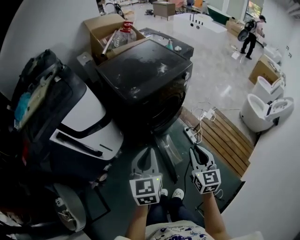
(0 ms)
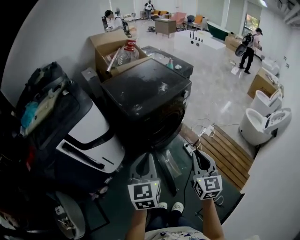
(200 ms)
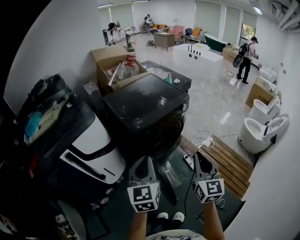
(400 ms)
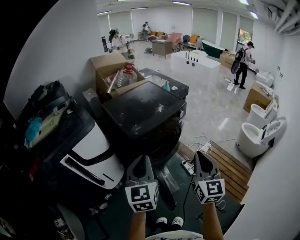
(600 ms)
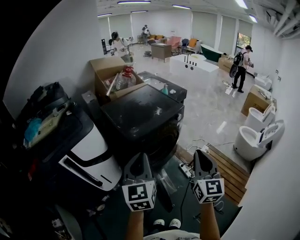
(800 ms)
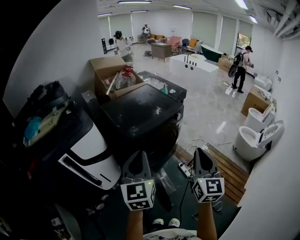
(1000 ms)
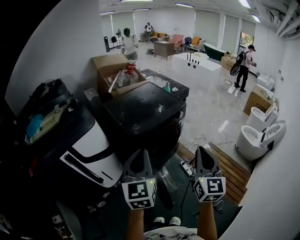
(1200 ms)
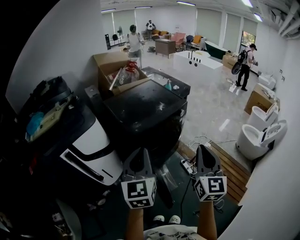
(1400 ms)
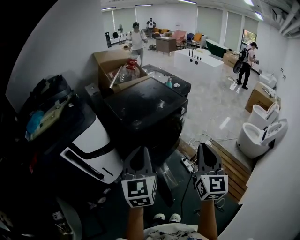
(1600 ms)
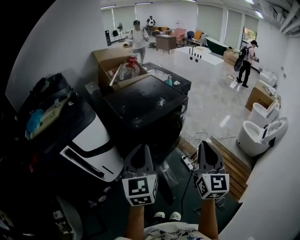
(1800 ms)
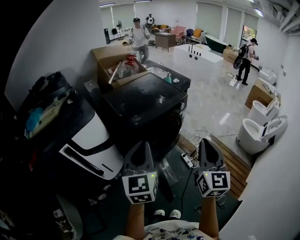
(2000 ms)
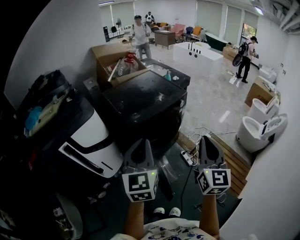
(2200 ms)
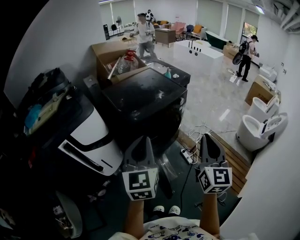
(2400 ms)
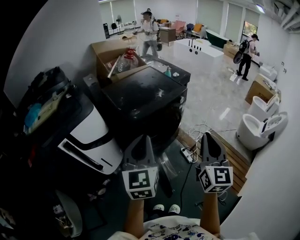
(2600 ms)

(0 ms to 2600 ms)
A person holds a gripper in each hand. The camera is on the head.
0 ms - 1200 ms: The two grippers go about 20 cm upward. The right gripper rotates approximately 20 degrees.
1200 ms - 2600 ms: The grippers make only small movements.

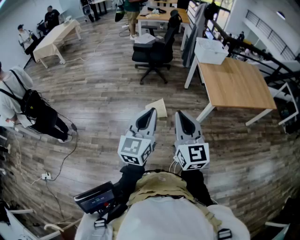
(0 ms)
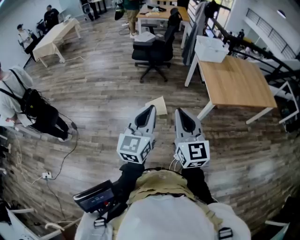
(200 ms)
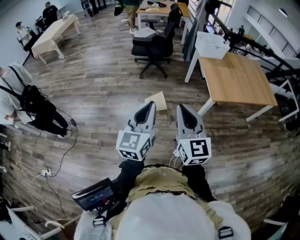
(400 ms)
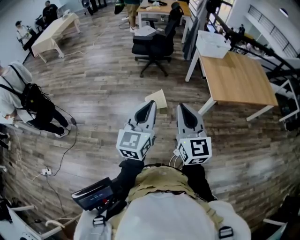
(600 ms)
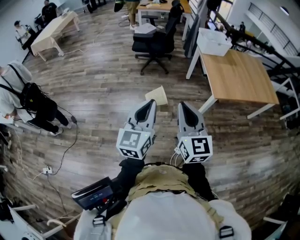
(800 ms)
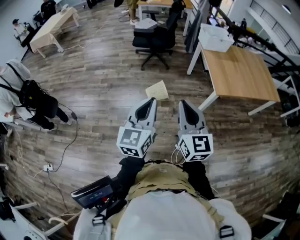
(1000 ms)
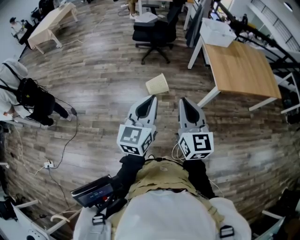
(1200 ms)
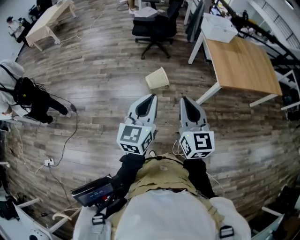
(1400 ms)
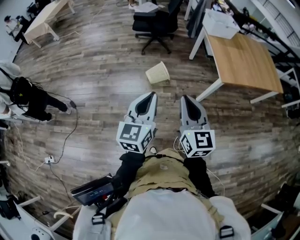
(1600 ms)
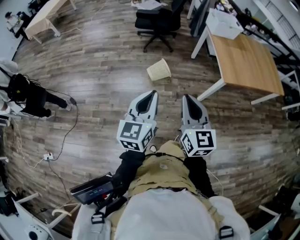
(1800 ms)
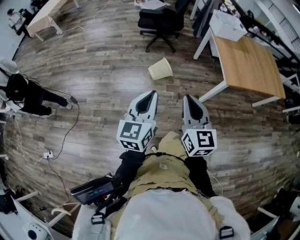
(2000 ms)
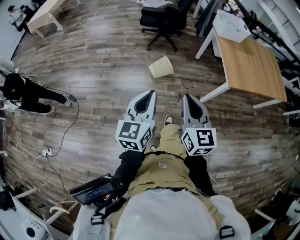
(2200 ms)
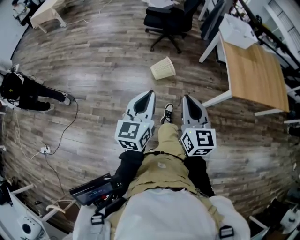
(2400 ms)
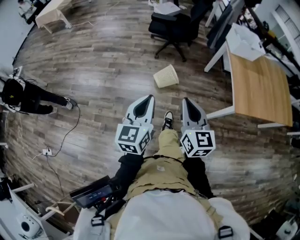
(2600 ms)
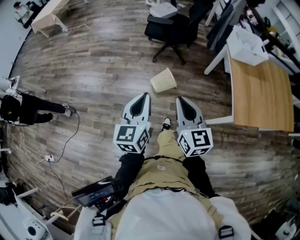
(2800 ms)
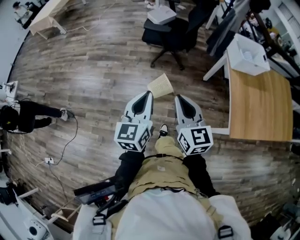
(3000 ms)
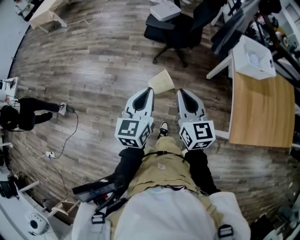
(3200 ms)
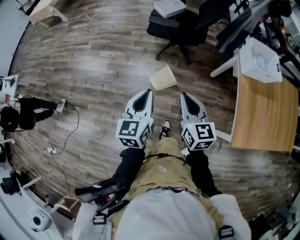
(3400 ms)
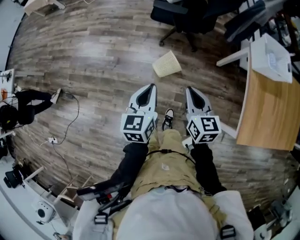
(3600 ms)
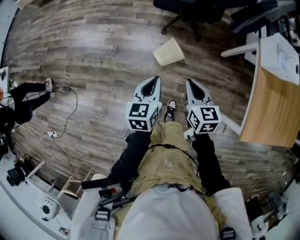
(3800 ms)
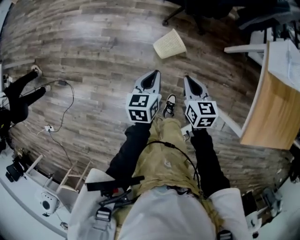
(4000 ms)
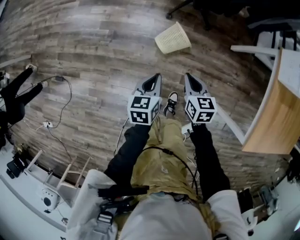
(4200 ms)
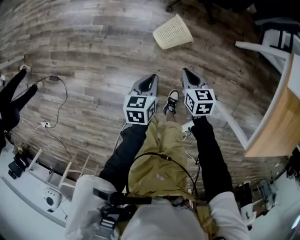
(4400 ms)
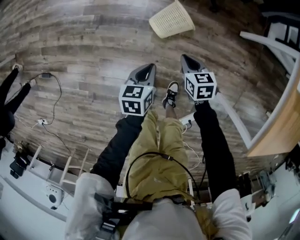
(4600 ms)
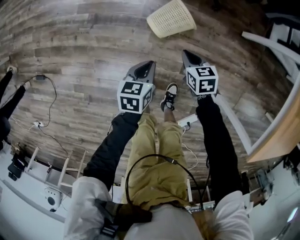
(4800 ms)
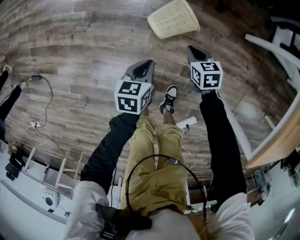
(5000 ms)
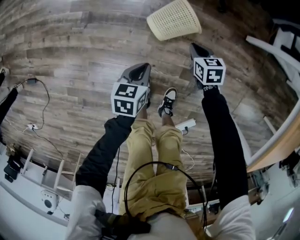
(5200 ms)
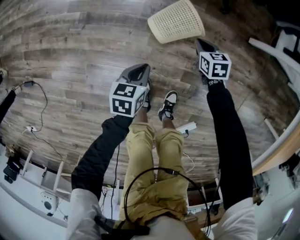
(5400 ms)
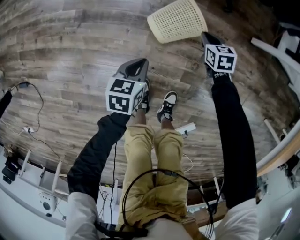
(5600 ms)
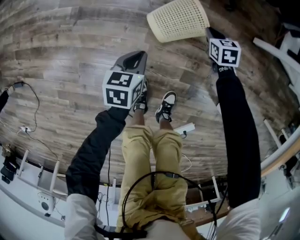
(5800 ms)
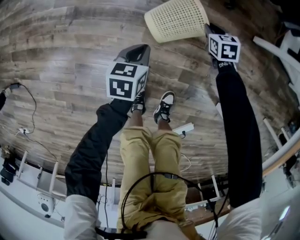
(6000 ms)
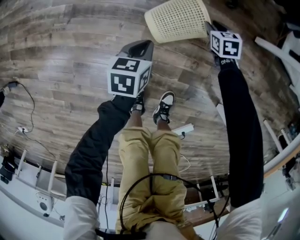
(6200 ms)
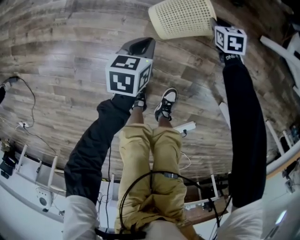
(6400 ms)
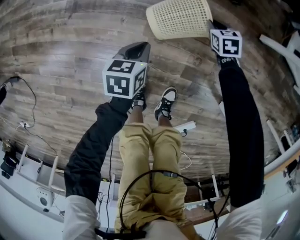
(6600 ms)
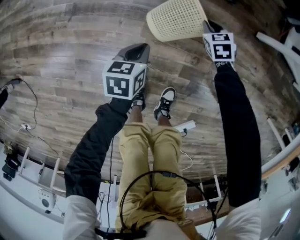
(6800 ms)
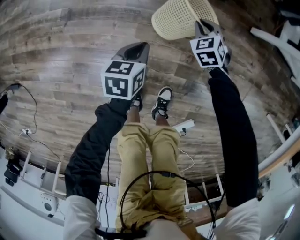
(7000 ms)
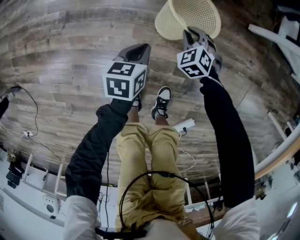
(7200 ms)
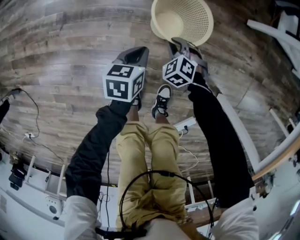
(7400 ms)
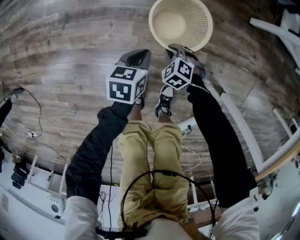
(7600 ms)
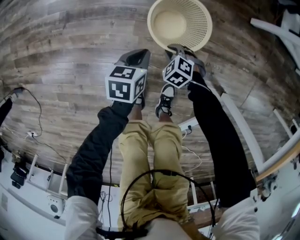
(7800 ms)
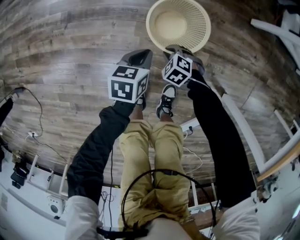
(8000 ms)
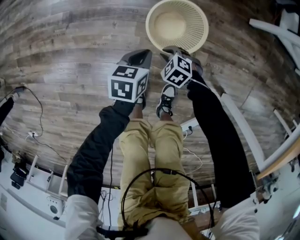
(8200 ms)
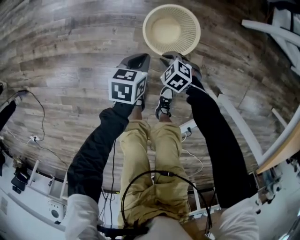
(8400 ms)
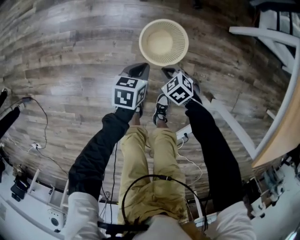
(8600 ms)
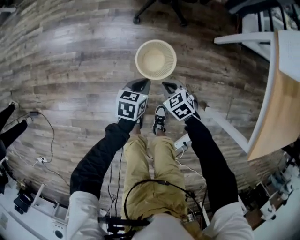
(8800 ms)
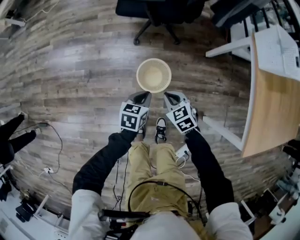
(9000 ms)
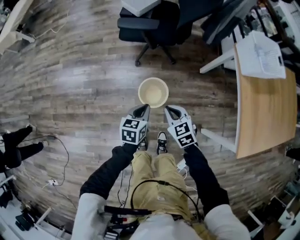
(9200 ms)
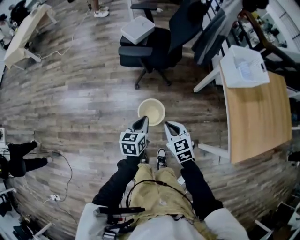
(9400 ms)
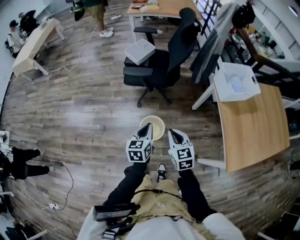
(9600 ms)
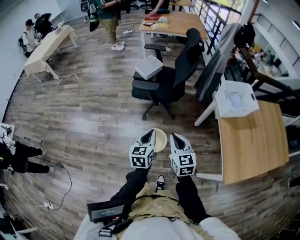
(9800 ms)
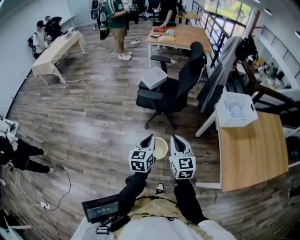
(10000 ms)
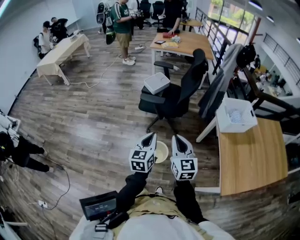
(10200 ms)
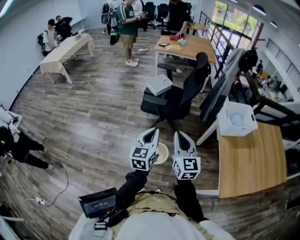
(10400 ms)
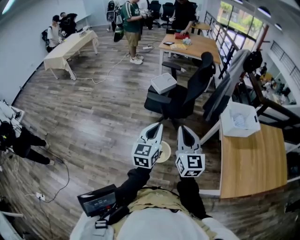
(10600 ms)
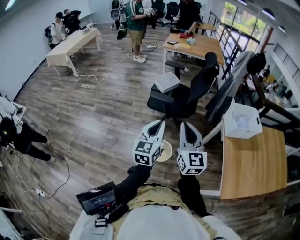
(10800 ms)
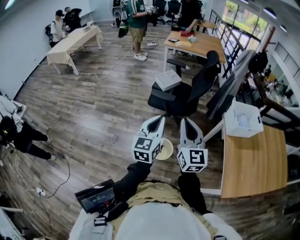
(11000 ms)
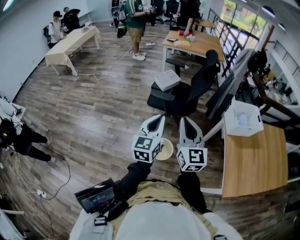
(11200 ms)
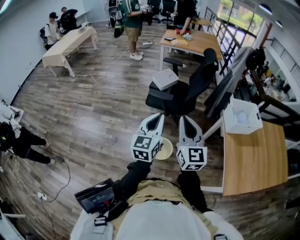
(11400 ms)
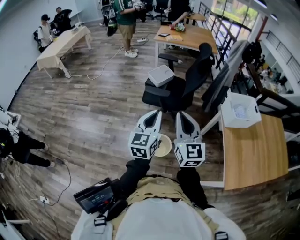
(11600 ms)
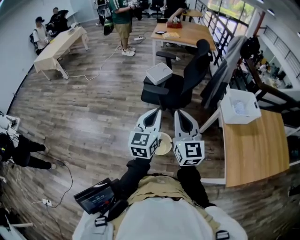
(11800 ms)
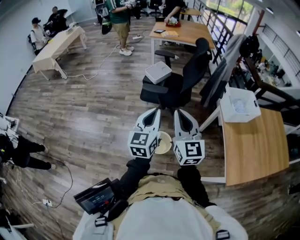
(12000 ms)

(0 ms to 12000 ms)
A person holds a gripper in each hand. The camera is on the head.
0 ms - 1600 ms: Both grippers move downward, approximately 5 cm.
1600 ms - 3000 ms: The two grippers go about 40 cm forward.
3000 ms - 4400 ms: The grippers both shift downward and forward by some 50 cm. The right gripper tips its fingers downward by about 40 degrees; the left gripper tips its fingers downward by roughly 40 degrees.
4400 ms - 6000 ms: The right gripper goes about 40 cm downward and forward, and swivels some 20 degrees. Meanwhile the left gripper goes about 35 cm downward.
6000 ms - 7600 ms: The right gripper moves backward, approximately 20 cm, and swivels approximately 40 degrees; the left gripper heads to the right, covering approximately 10 cm.
7600 ms - 9000 ms: The grippers both shift upward by some 35 cm. The right gripper rotates some 40 degrees.
9000 ms - 10400 ms: The two grippers go some 50 cm upward. The right gripper angles its fingers upward, by roughly 50 degrees. Meanwhile the left gripper points its fingers roughly 40 degrees further upward.
10400 ms - 12000 ms: The right gripper travels upward by about 5 cm; the left gripper ends up approximately 5 cm from where it was.

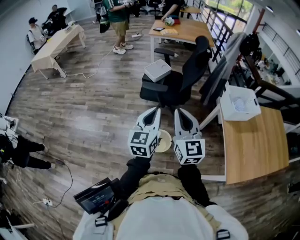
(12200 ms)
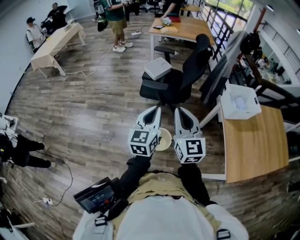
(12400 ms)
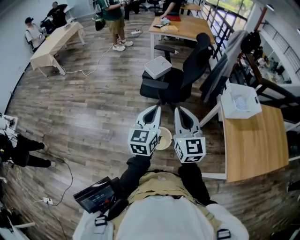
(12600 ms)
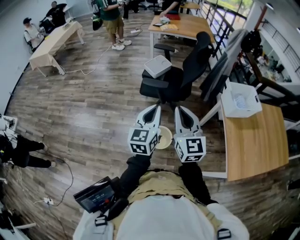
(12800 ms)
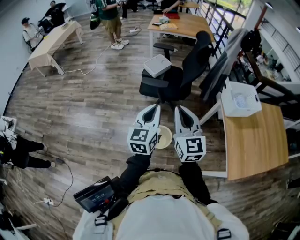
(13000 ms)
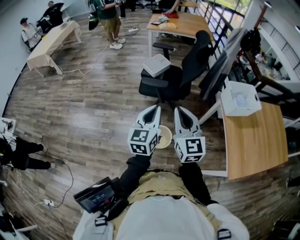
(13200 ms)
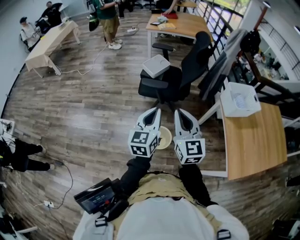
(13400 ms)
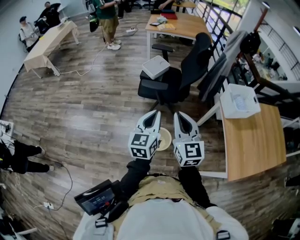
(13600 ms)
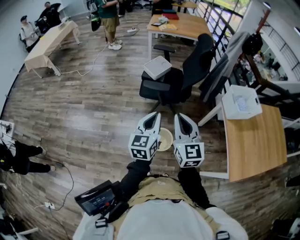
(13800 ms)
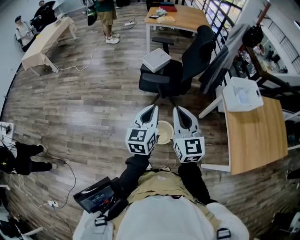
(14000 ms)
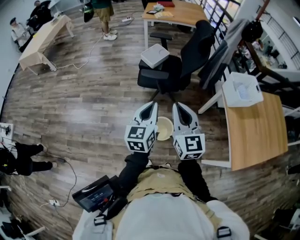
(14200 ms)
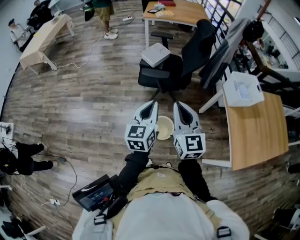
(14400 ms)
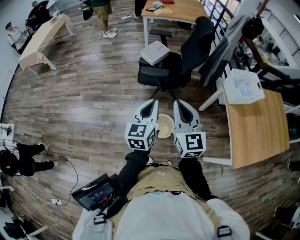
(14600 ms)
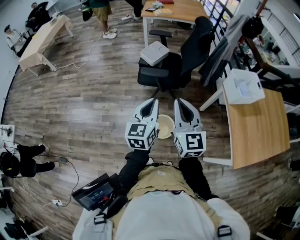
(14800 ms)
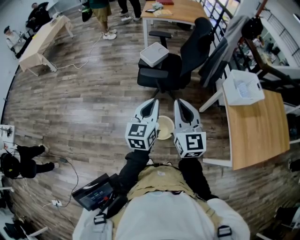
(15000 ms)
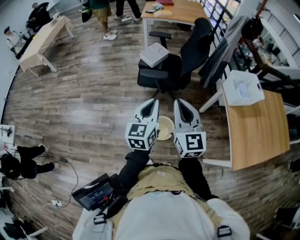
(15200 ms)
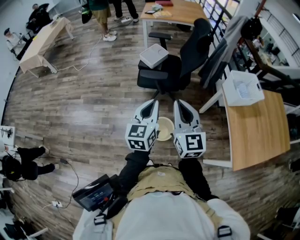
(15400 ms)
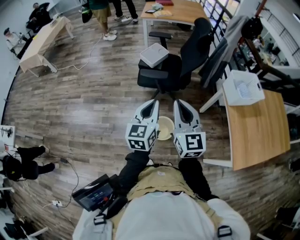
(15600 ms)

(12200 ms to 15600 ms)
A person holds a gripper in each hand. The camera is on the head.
12200 ms - 13800 ms: The right gripper shifts by approximately 5 cm, while the left gripper moves about 5 cm.
13800 ms - 15600 ms: There are only small adjustments of the grippers.

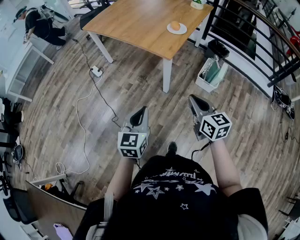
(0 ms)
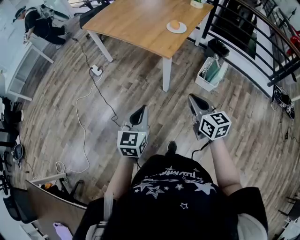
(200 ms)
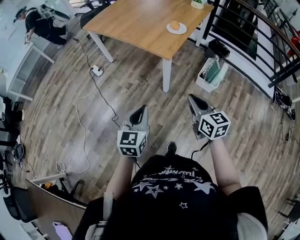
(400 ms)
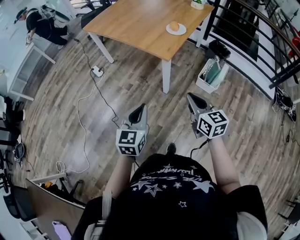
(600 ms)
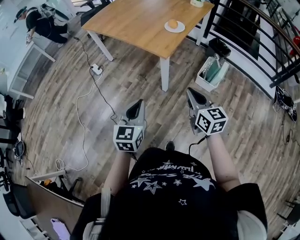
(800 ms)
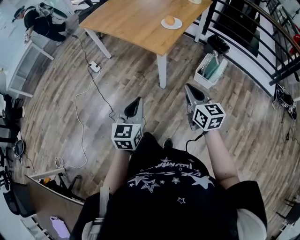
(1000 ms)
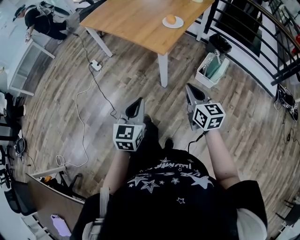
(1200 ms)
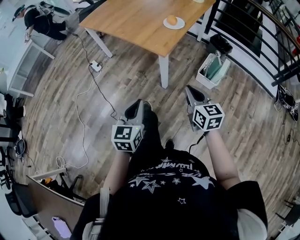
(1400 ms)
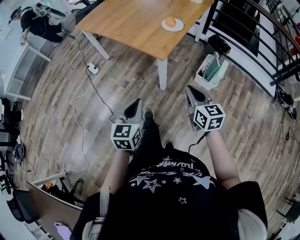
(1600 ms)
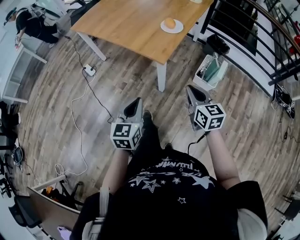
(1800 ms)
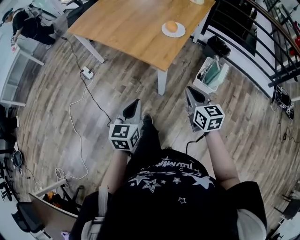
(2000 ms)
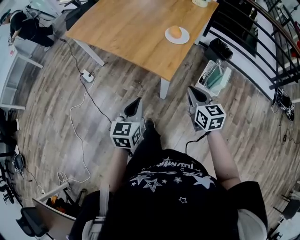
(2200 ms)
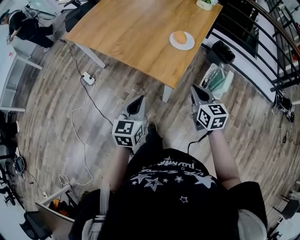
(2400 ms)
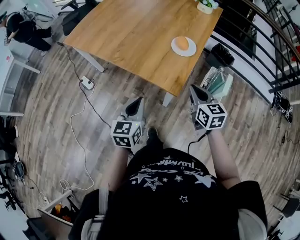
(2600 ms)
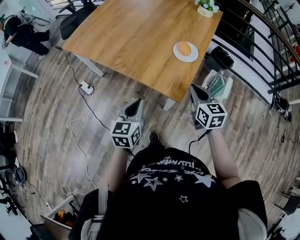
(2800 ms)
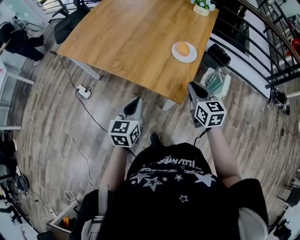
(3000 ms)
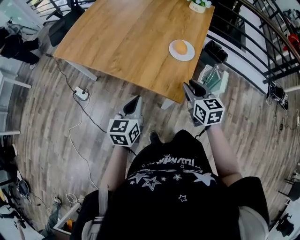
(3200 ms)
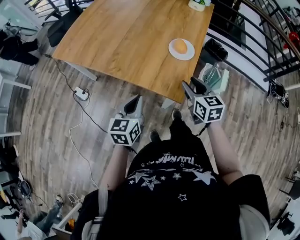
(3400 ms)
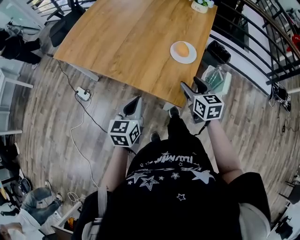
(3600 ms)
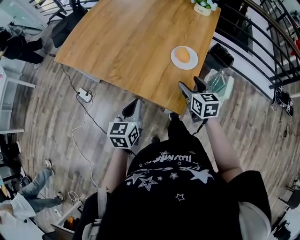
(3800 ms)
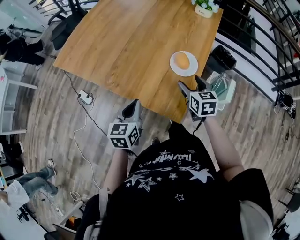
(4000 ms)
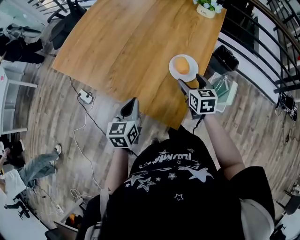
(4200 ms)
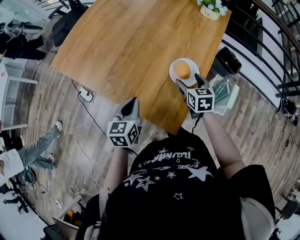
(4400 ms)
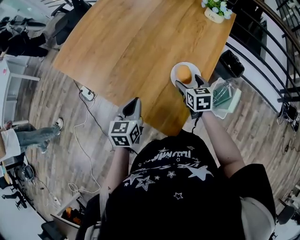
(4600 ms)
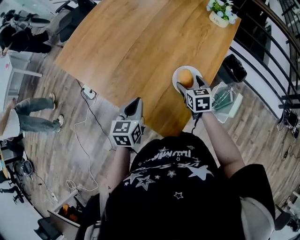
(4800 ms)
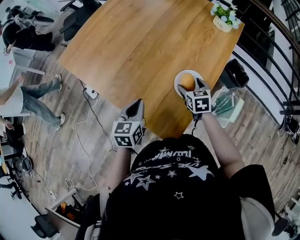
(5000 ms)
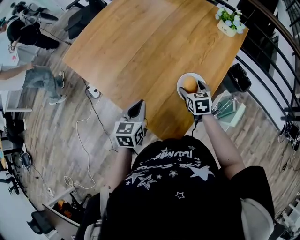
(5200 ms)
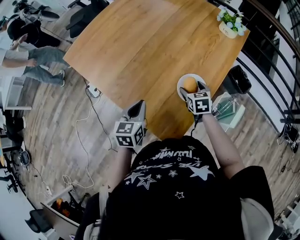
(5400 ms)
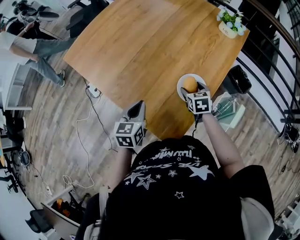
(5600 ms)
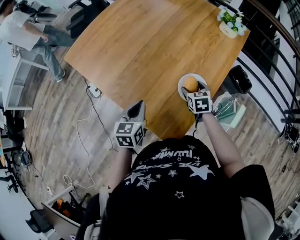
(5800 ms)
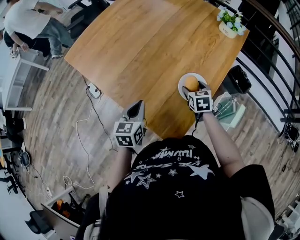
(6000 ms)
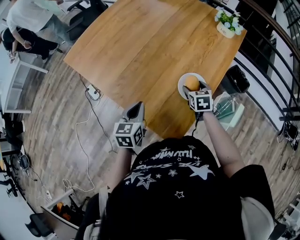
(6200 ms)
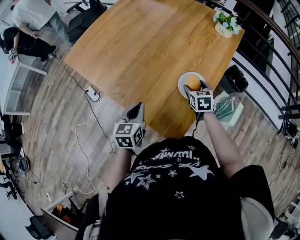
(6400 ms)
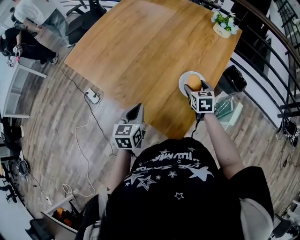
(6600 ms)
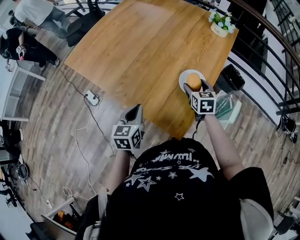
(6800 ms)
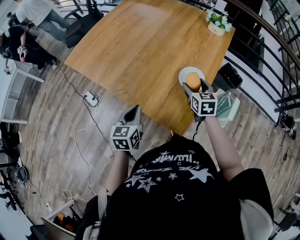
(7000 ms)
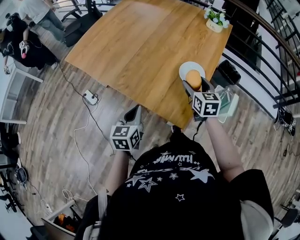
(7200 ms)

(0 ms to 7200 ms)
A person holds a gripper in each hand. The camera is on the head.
0 ms - 1400 ms: The right gripper shifts some 5 cm forward.
1400 ms - 2800 ms: The grippers both shift forward by approximately 25 cm.
2800 ms - 4400 ms: The right gripper moves forward and downward, some 20 cm, and opens its fingers. Meanwhile the left gripper heads forward, covering approximately 15 cm.
4400 ms - 5800 ms: The right gripper heads downward, covering some 5 cm.
5800 ms - 7200 ms: The right gripper heads upward and backward, covering approximately 15 cm, and turns by roughly 20 degrees; the left gripper heads backward, covering some 10 cm.
